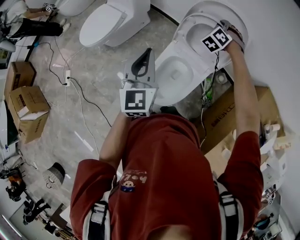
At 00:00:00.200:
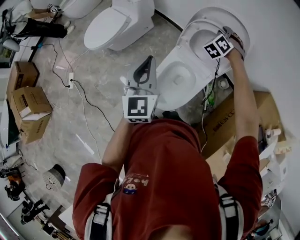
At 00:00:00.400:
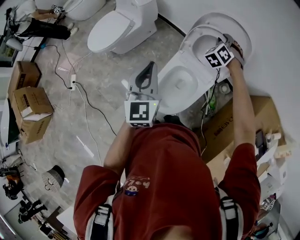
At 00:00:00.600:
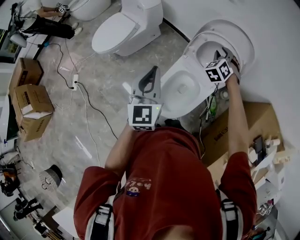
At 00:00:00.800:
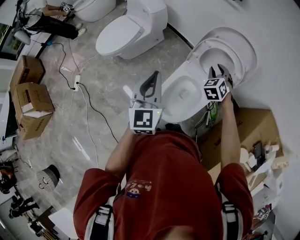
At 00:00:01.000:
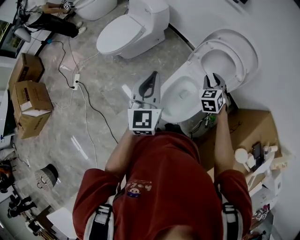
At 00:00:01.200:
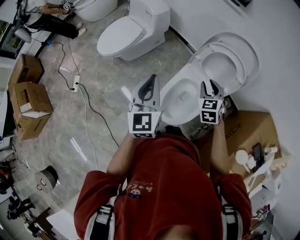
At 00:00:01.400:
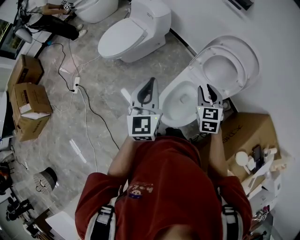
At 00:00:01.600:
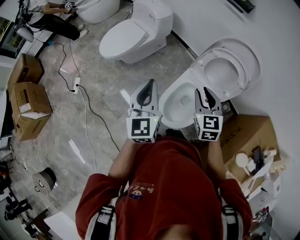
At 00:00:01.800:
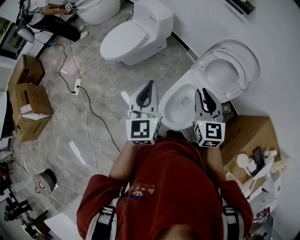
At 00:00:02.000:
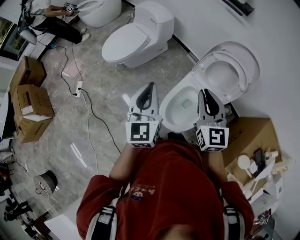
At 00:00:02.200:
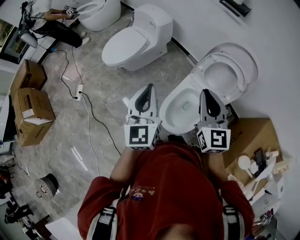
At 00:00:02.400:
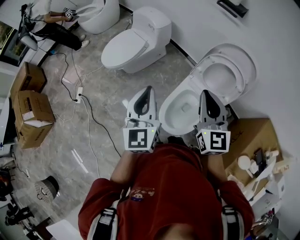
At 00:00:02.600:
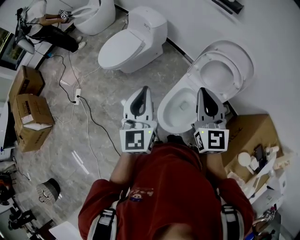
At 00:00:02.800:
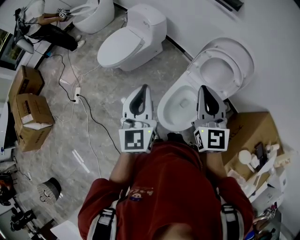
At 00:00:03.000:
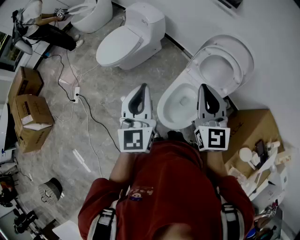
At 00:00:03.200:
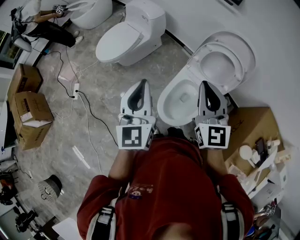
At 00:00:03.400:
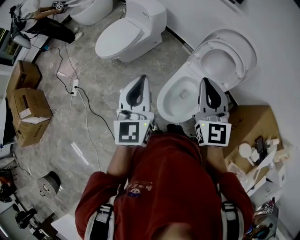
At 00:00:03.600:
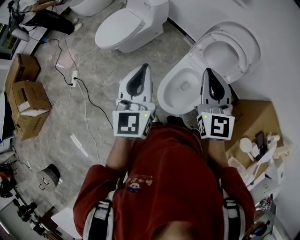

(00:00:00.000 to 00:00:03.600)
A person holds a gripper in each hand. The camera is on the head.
00:00:00.000 - 00:00:01.800: The right gripper heads backward and to the left, covering approximately 35 cm, and turns by roughly 70 degrees, while the left gripper goes roughly 15 cm to the left and backward.
00:00:01.800 - 00:00:03.600: The right gripper shifts approximately 10 cm upward, while the left gripper changes place by some 5 cm.

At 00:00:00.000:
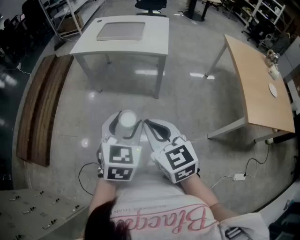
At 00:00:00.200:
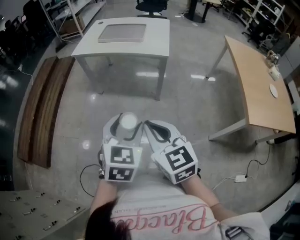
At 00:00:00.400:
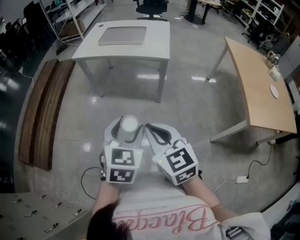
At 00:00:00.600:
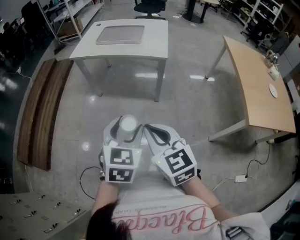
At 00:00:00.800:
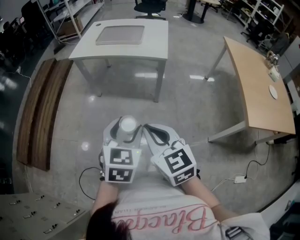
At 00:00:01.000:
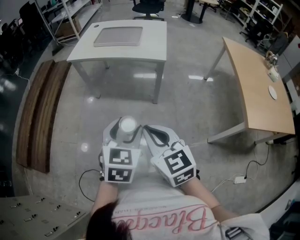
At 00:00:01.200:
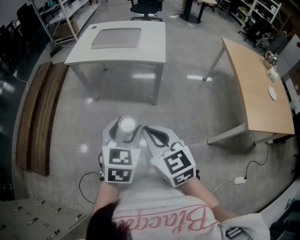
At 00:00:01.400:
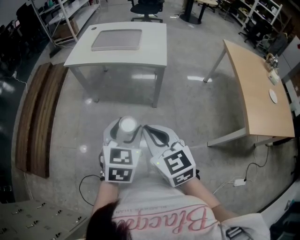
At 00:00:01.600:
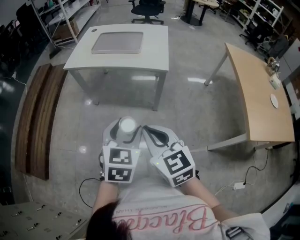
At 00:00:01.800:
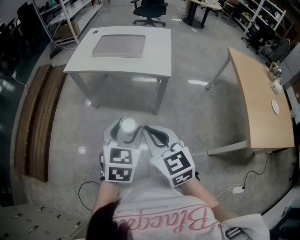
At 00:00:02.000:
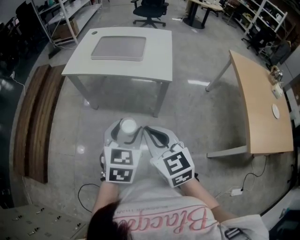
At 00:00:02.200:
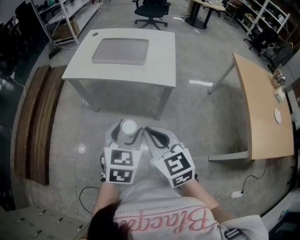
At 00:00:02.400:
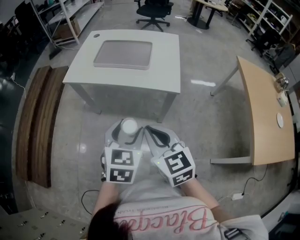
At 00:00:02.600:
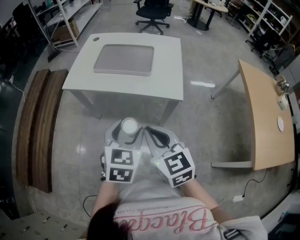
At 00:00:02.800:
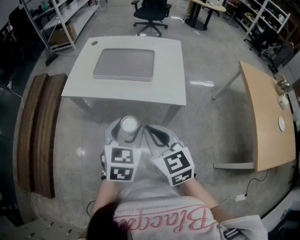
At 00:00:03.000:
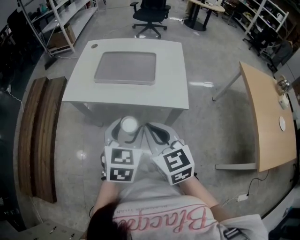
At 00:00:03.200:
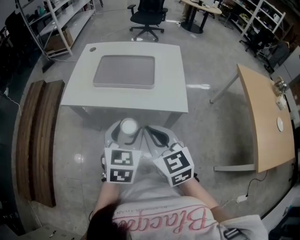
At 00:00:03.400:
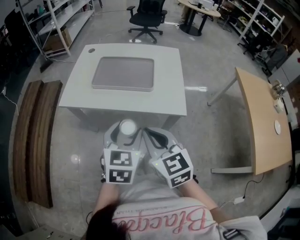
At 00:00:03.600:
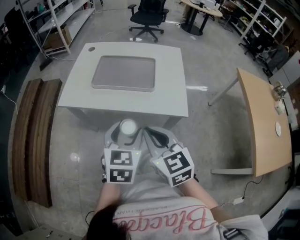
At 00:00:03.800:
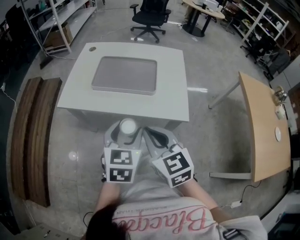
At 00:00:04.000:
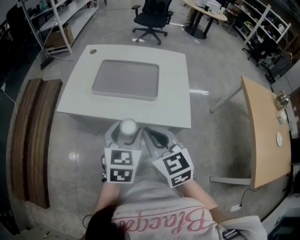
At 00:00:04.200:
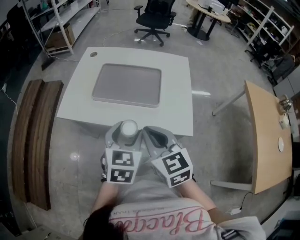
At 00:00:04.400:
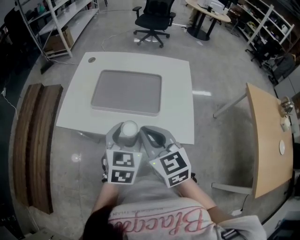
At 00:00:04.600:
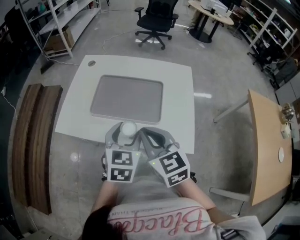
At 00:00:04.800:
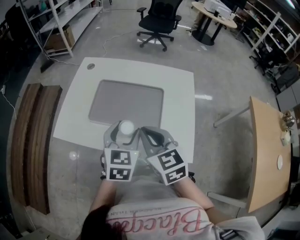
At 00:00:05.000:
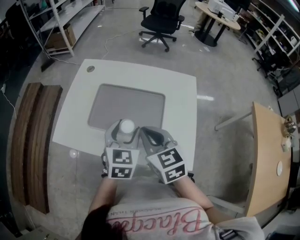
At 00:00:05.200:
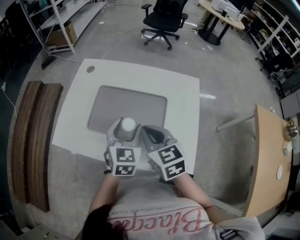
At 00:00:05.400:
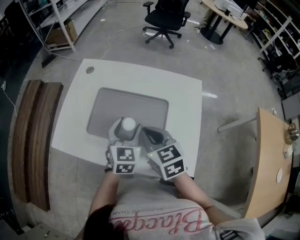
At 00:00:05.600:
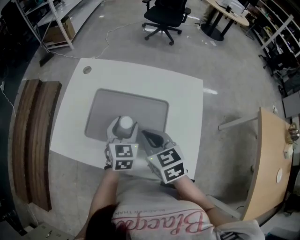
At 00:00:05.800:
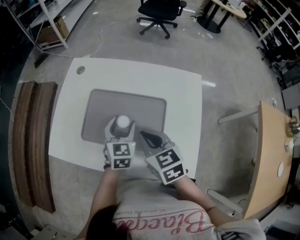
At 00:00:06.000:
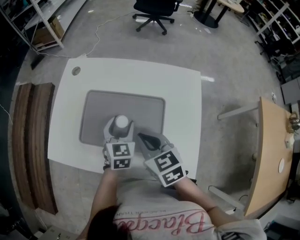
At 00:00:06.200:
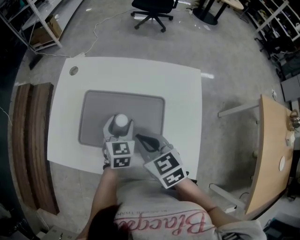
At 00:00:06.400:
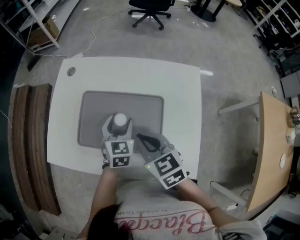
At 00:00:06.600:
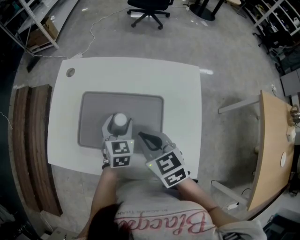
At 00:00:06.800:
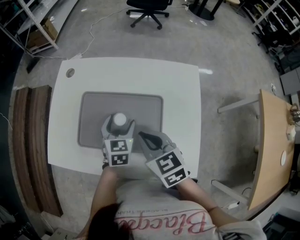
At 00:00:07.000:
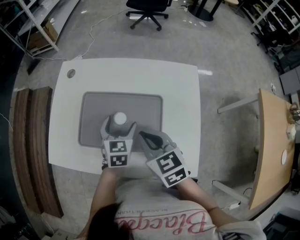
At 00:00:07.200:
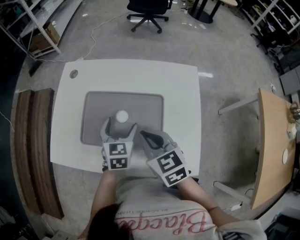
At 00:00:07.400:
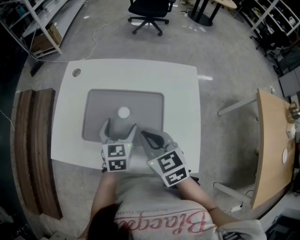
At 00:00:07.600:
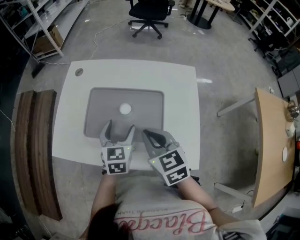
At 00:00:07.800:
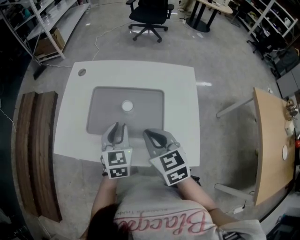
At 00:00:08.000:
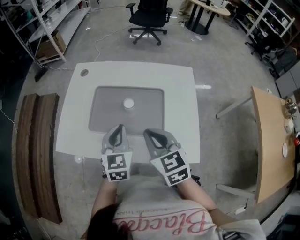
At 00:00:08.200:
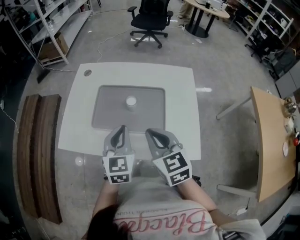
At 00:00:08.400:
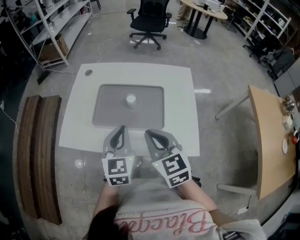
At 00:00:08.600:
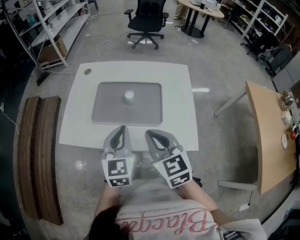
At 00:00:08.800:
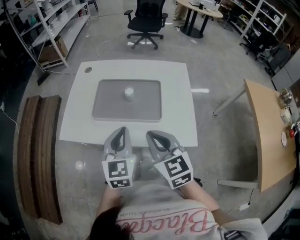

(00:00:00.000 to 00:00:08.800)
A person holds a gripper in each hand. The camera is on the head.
00:00:00.000 - 00:00:01.400: The two grippers go about 5 cm forward.
00:00:01.400 - 00:00:03.000: Both grippers travel together forward, some 25 cm.
00:00:03.000 - 00:00:04.400: The two grippers go about 15 cm forward.
00:00:04.400 - 00:00:05.800: The grippers both shift forward and downward by about 20 cm.
00:00:05.800 - 00:00:07.400: The left gripper opens its fingers.
00:00:07.400 - 00:00:08.800: The left gripper shifts some 15 cm backward and upward, and closes its fingers; the right gripper moves backward, some 10 cm.

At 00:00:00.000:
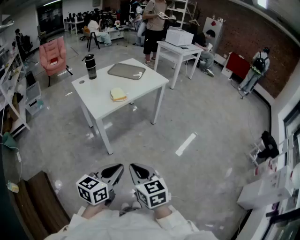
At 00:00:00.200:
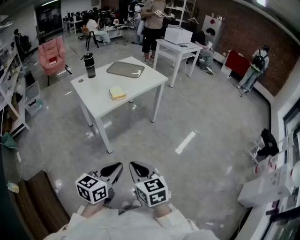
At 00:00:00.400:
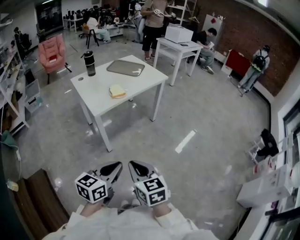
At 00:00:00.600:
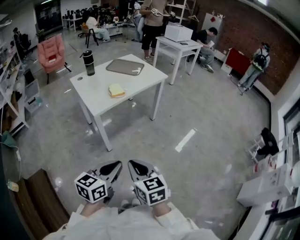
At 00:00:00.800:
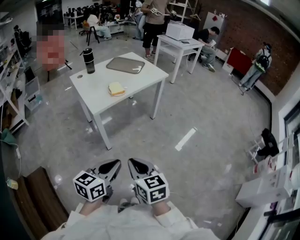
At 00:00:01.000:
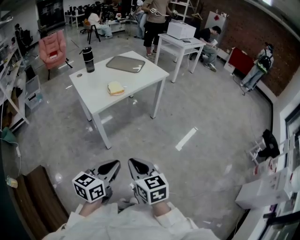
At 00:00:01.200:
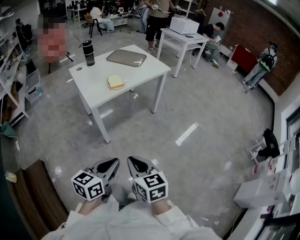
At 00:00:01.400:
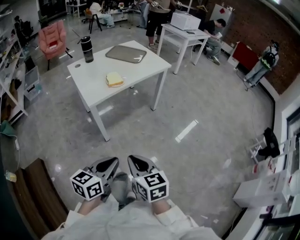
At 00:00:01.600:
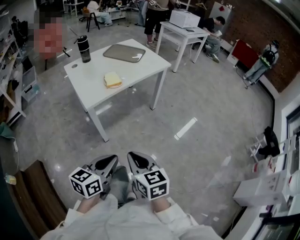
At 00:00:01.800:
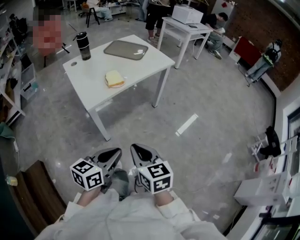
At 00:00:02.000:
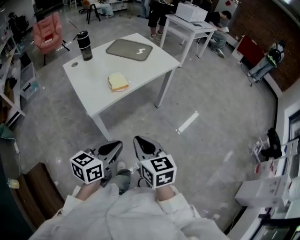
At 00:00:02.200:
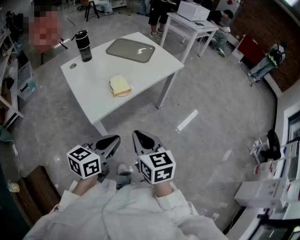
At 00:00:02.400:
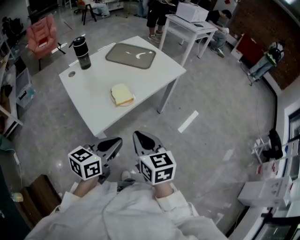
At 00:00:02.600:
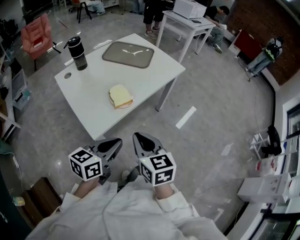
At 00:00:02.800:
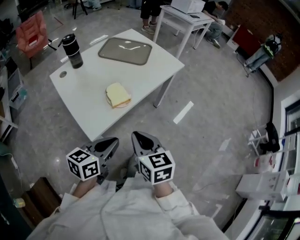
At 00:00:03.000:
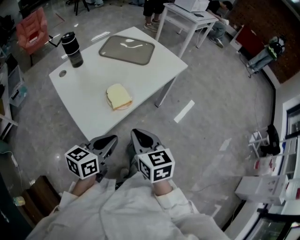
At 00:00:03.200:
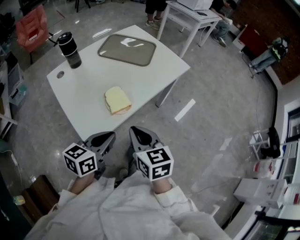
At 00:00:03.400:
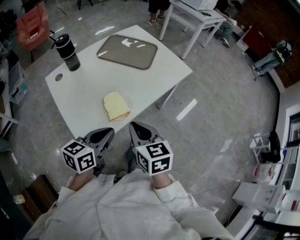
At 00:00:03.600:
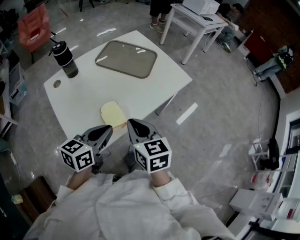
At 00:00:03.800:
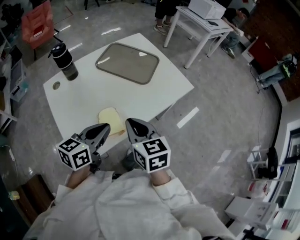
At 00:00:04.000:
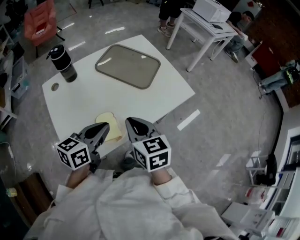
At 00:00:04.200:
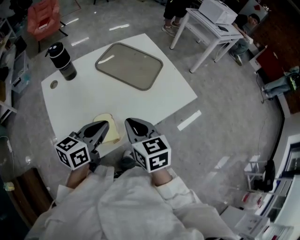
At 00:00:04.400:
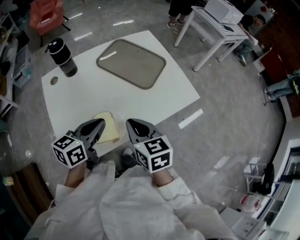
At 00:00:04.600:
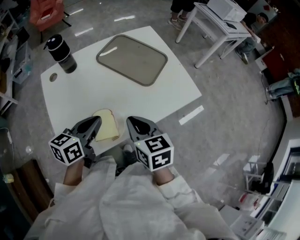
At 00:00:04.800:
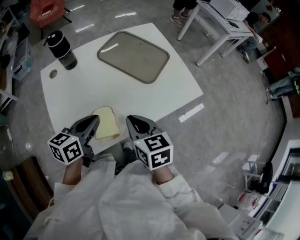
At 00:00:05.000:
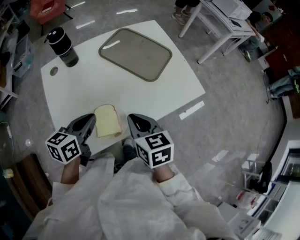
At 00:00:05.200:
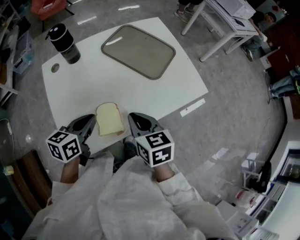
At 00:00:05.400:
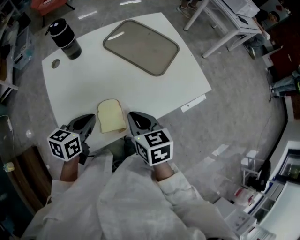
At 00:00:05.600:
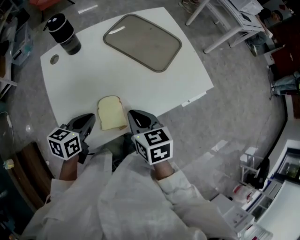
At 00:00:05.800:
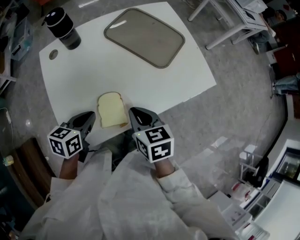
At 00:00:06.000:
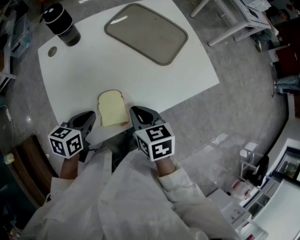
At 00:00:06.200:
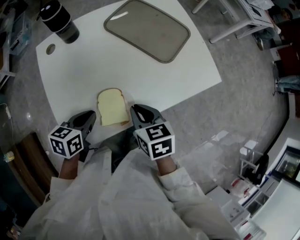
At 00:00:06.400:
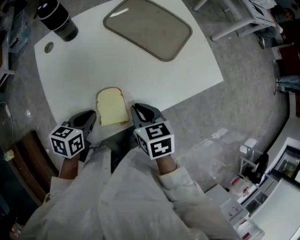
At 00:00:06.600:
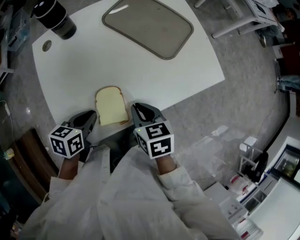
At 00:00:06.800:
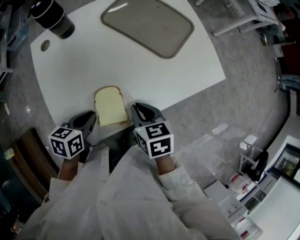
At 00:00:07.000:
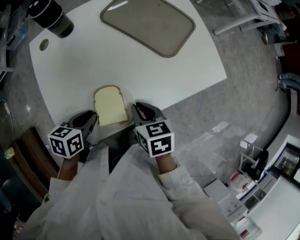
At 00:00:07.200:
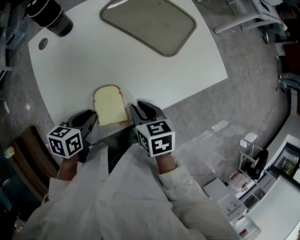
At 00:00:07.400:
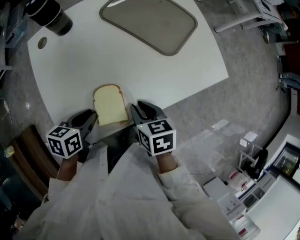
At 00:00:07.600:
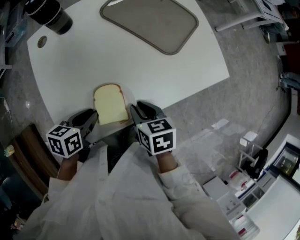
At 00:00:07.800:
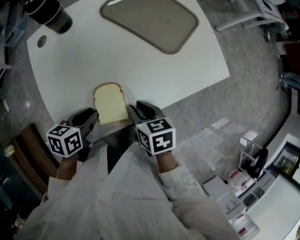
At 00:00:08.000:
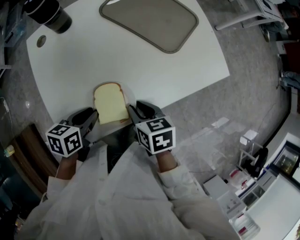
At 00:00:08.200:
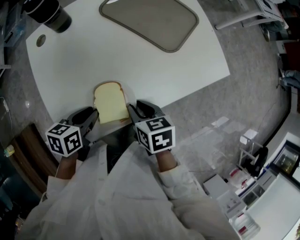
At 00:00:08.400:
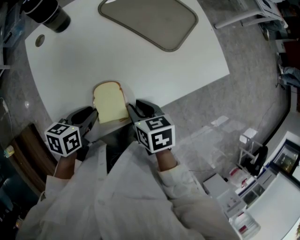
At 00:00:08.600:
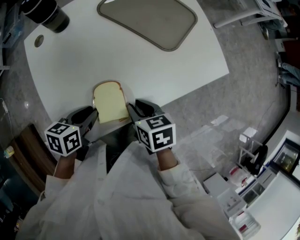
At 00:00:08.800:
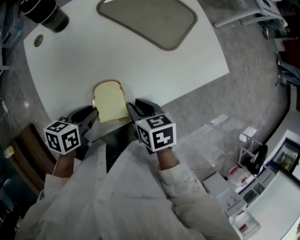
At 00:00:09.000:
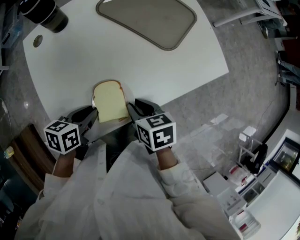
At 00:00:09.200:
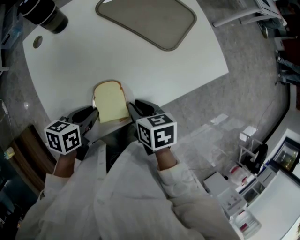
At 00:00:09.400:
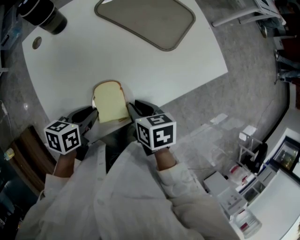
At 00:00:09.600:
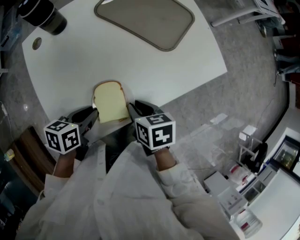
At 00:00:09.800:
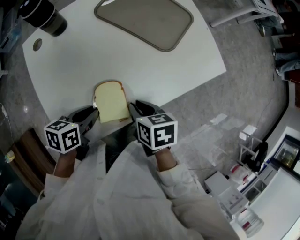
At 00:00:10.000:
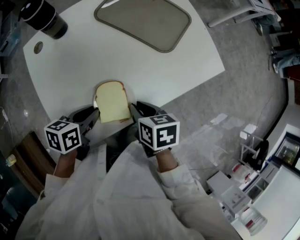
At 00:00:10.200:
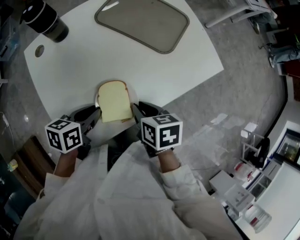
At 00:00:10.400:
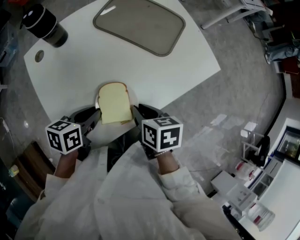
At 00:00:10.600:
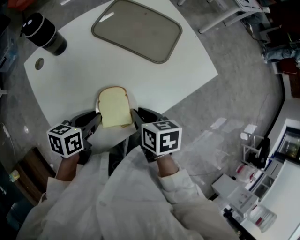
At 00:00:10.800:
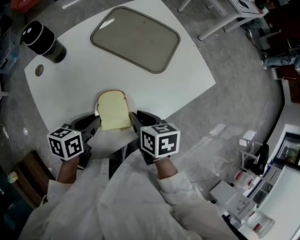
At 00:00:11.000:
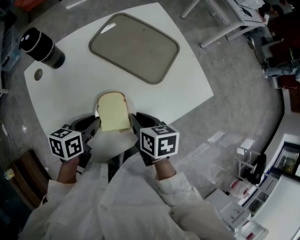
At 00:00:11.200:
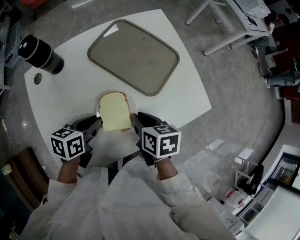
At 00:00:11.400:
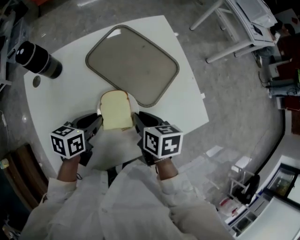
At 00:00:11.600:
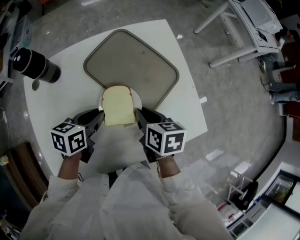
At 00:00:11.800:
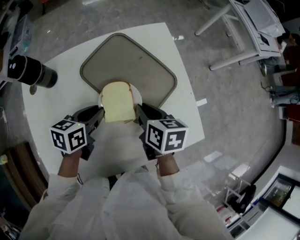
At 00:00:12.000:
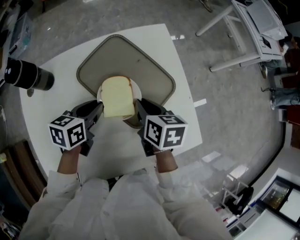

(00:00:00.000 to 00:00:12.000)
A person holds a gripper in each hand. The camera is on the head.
00:00:00.000 - 00:00:01.600: Both grippers travel together forward, some 10 cm.
00:00:01.600 - 00:00:03.000: The grippers both shift forward and to the left by some 35 cm.
00:00:03.000 - 00:00:04.400: The grippers both shift forward by some 25 cm.
00:00:04.400 - 00:00:06.000: The left gripper moves downward and to the left, some 15 cm, and turns by roughly 20 degrees. Meanwhile the right gripper moves downward, roughly 10 cm.
00:00:06.000 - 00:00:07.600: The right gripper shifts some 5 cm downward.
00:00:07.600 - 00:00:09.000: The two grippers keep their place.
00:00:09.000 - 00:00:10.400: There are only small adjustments of the grippers.
00:00:10.400 - 00:00:12.000: Both grippers move forward, approximately 30 cm.
